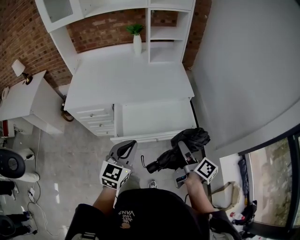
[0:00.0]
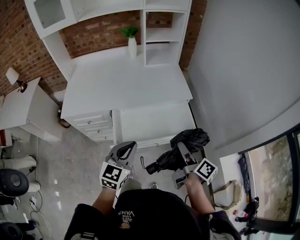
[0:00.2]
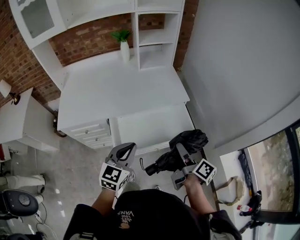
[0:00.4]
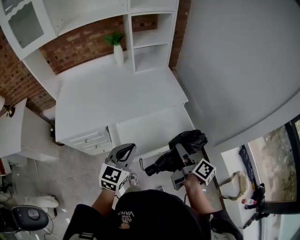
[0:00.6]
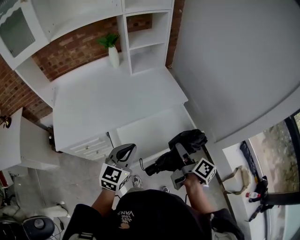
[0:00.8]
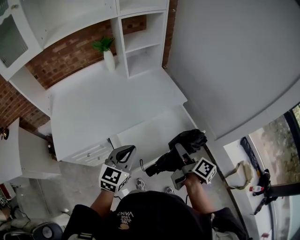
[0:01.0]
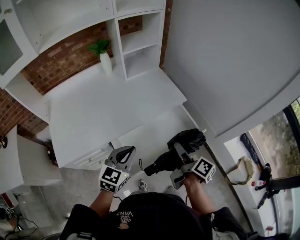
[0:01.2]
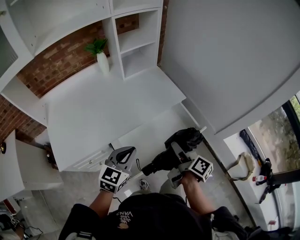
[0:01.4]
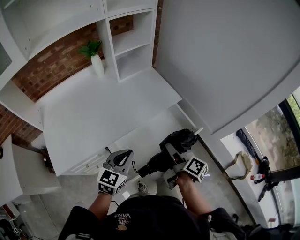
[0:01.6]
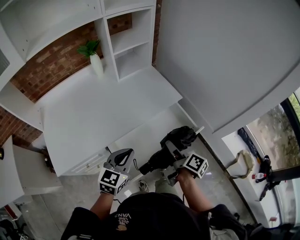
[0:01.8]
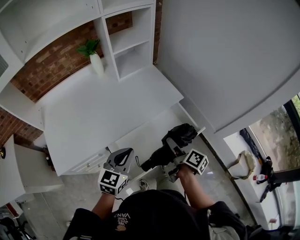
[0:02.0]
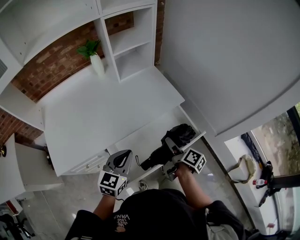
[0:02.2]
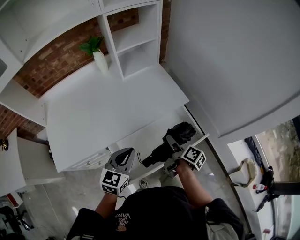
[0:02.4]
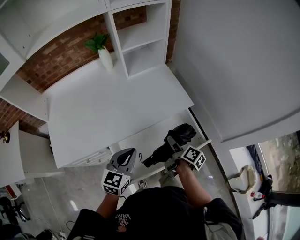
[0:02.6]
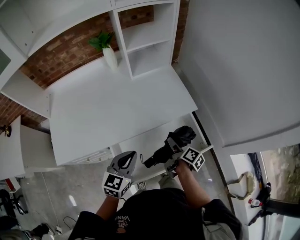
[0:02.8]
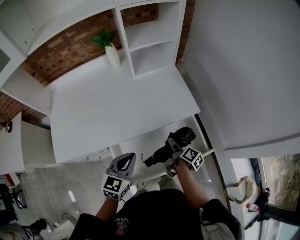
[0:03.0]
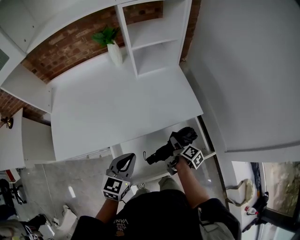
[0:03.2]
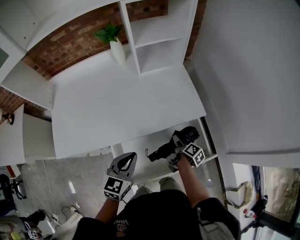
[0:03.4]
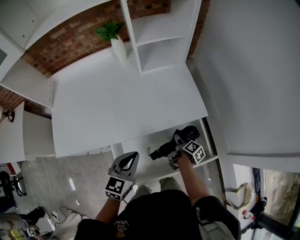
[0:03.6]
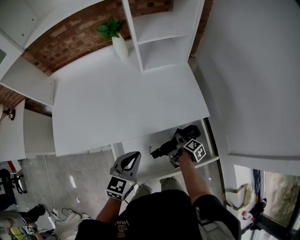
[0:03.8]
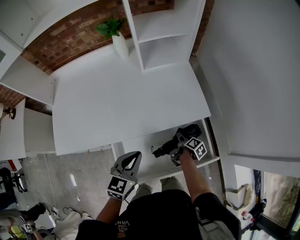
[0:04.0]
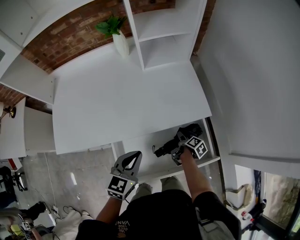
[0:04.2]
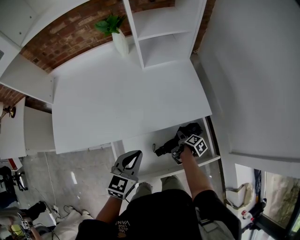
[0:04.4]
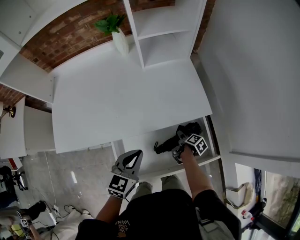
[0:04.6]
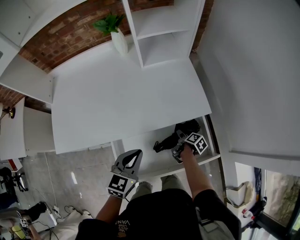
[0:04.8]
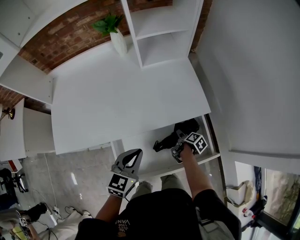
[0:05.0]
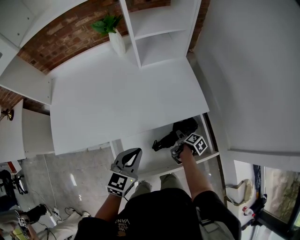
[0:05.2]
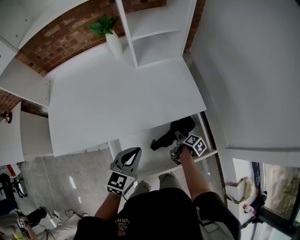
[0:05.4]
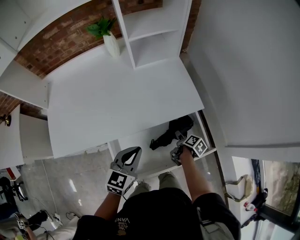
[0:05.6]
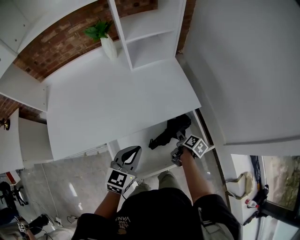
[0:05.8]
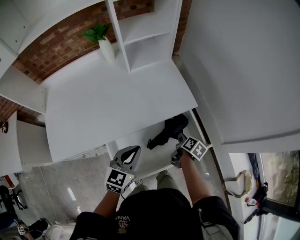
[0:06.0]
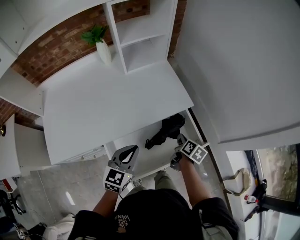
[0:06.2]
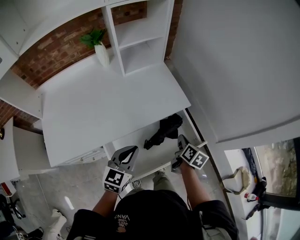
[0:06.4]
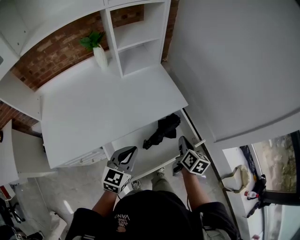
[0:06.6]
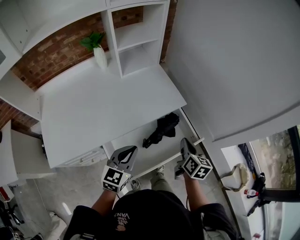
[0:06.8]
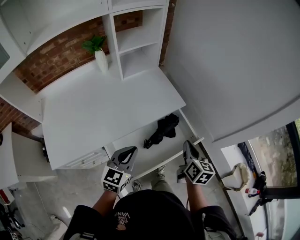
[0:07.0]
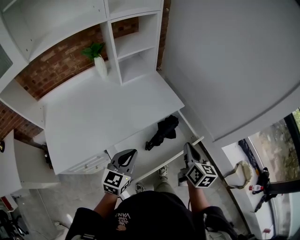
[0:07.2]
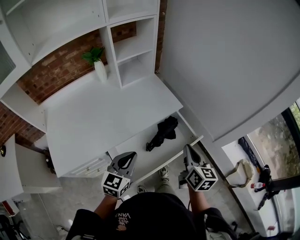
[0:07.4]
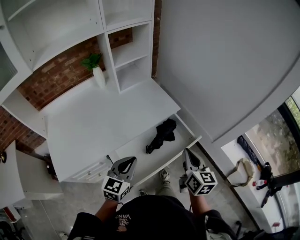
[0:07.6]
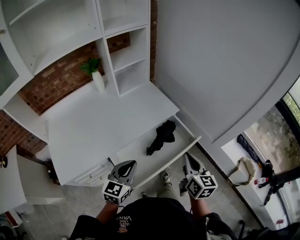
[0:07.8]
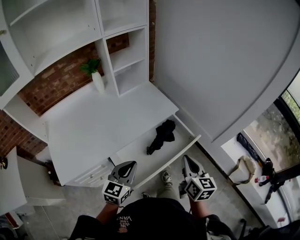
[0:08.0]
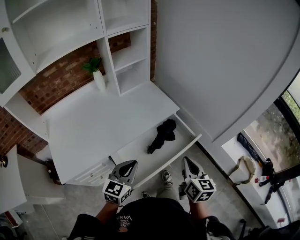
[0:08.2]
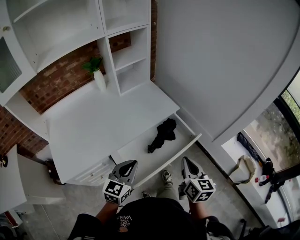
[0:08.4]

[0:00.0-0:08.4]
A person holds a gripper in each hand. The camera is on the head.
0:00.0 to 0:01.4: The right gripper changes place by some 20 cm, and rotates roughly 20 degrees; the left gripper moves roughly 20 cm, and swivels roughly 30 degrees.
0:01.4 to 0:02.8: The left gripper is displaced forward by roughly 10 cm. The right gripper moves forward and downward, some 20 cm.
0:02.8 to 0:04.2: The left gripper ends up roughly 5 cm from where it was, while the right gripper goes approximately 15 cm downward and forward, and turns by approximately 20 degrees.
0:04.2 to 0:05.6: The grippers make only small movements.
0:05.6 to 0:07.0: The right gripper moves upward and backward, roughly 30 cm, turns by roughly 50 degrees, and closes its fingers. Meanwhile the left gripper goes roughly 5 cm backward.
0:07.0 to 0:08.4: The right gripper is displaced backward and upward by some 15 cm; the left gripper shifts some 10 cm backward.

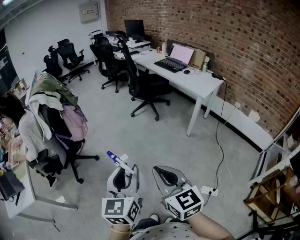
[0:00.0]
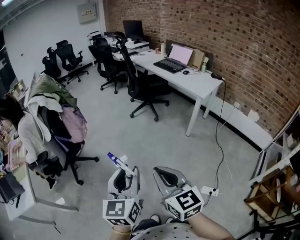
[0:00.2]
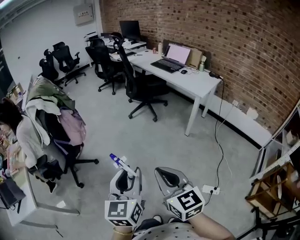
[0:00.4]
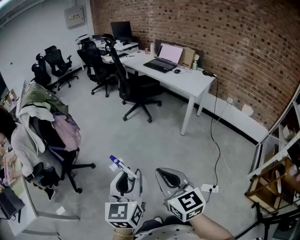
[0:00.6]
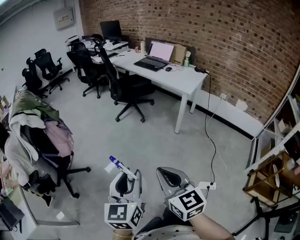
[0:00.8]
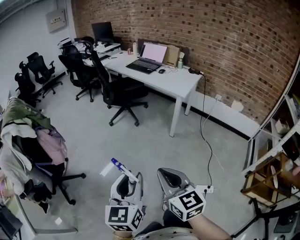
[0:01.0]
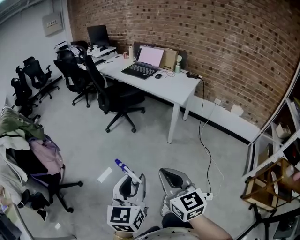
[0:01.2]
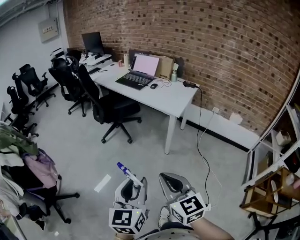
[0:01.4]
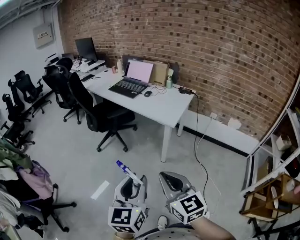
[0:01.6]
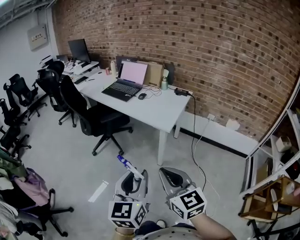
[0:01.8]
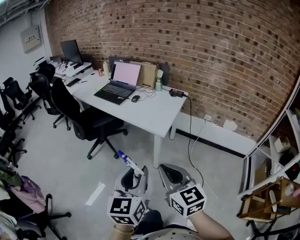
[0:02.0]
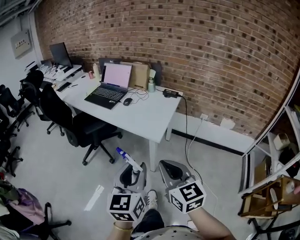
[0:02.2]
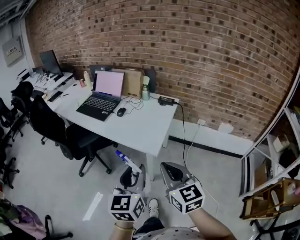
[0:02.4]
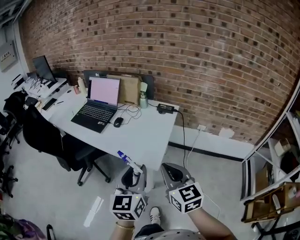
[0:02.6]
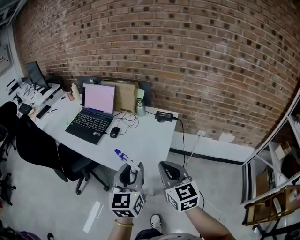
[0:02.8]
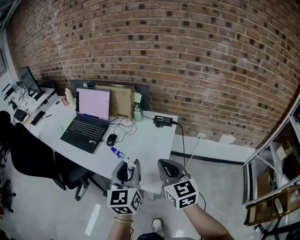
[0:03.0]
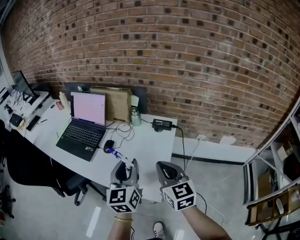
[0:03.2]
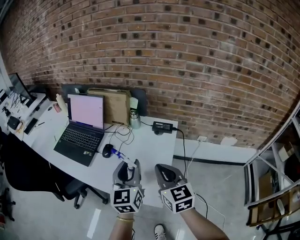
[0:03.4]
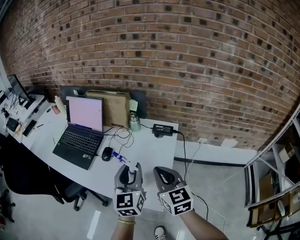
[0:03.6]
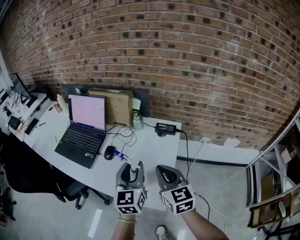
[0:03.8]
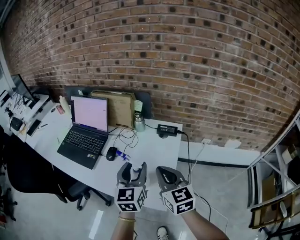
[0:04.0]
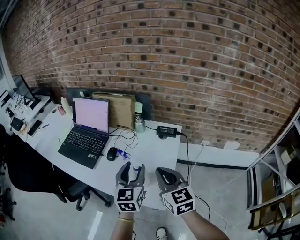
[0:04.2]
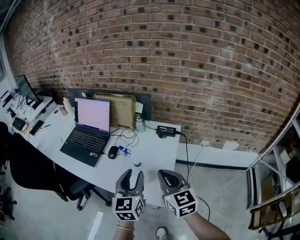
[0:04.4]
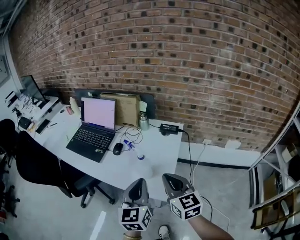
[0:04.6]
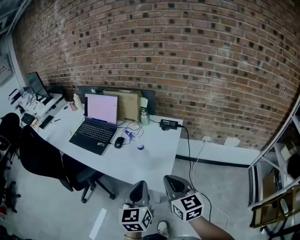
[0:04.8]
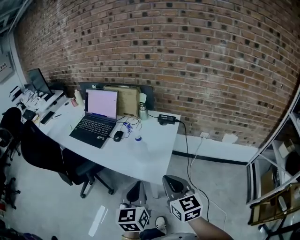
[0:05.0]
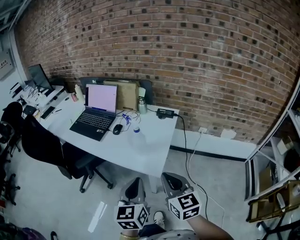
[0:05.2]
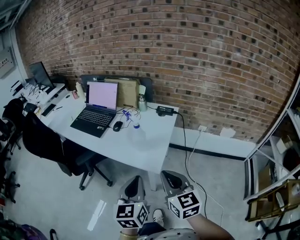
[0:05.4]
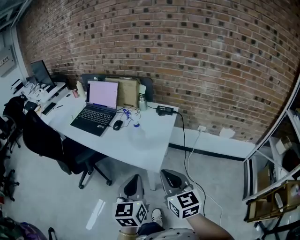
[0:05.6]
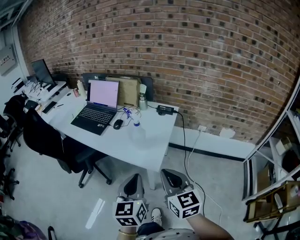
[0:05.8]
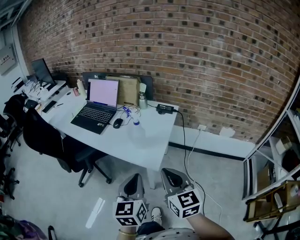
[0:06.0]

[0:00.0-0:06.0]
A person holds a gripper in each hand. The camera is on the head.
0:00.0 to 0:01.6: Both grippers travel together forward and to the right, approximately 40 cm. The left gripper changes its angle by approximately 20 degrees.
0:01.6 to 0:03.0: The pair of grippers is taken forward, roughly 60 cm. The right gripper rotates roughly 20 degrees.
0:03.0 to 0:04.4: The left gripper travels forward by roughly 5 cm.
0:04.4 to 0:06.0: The two grippers go roughly 25 cm backward. The left gripper closes its fingers.

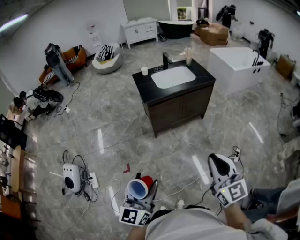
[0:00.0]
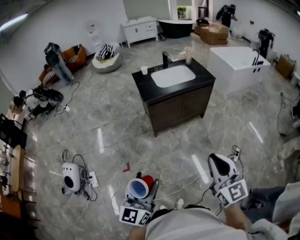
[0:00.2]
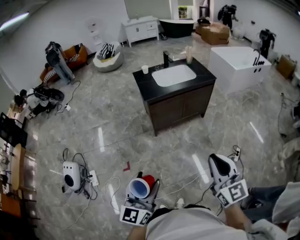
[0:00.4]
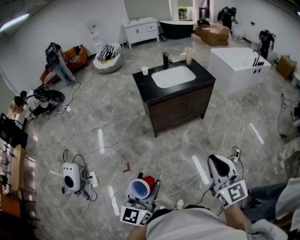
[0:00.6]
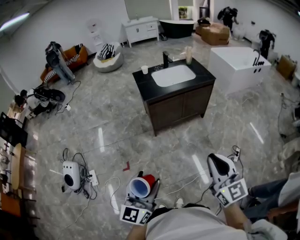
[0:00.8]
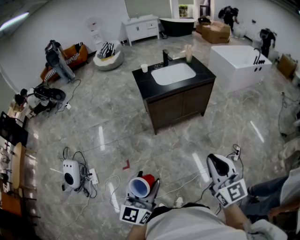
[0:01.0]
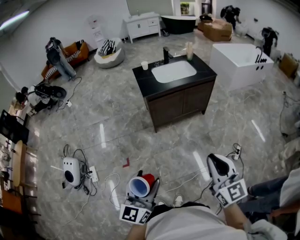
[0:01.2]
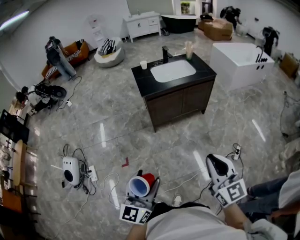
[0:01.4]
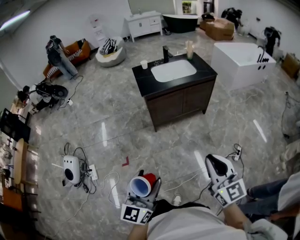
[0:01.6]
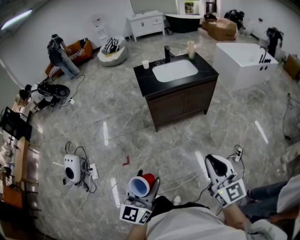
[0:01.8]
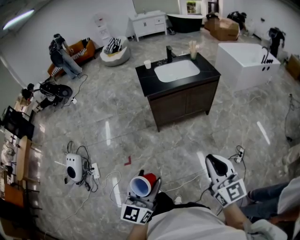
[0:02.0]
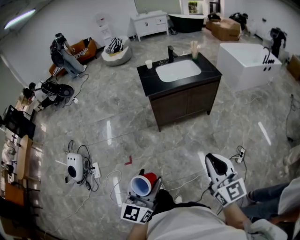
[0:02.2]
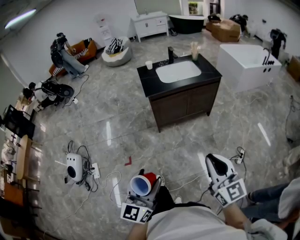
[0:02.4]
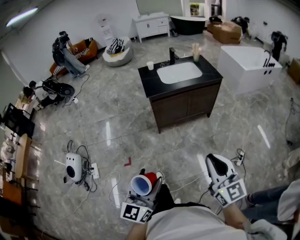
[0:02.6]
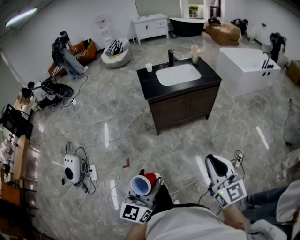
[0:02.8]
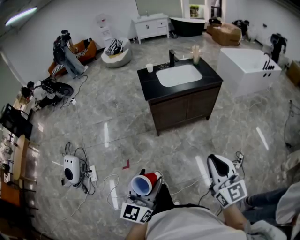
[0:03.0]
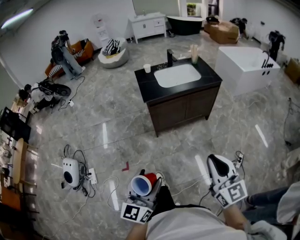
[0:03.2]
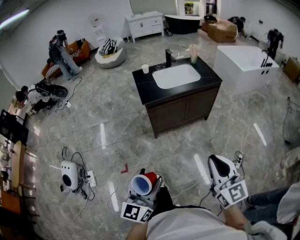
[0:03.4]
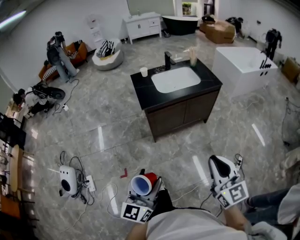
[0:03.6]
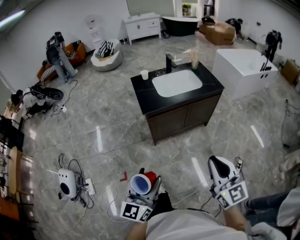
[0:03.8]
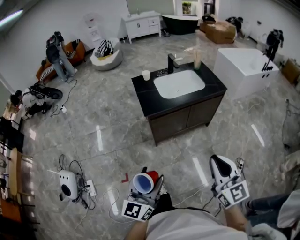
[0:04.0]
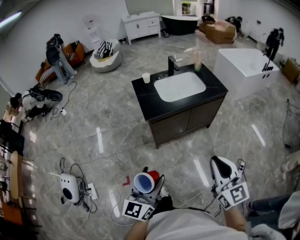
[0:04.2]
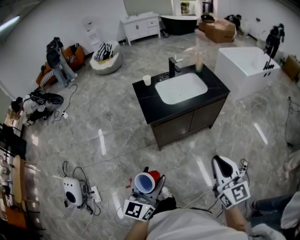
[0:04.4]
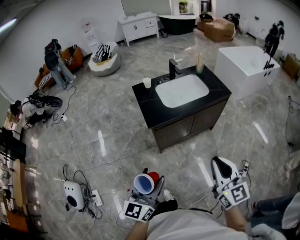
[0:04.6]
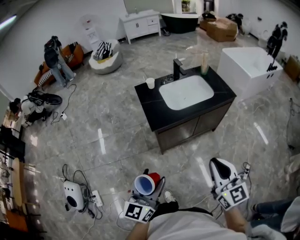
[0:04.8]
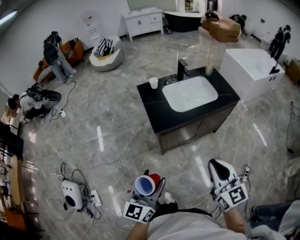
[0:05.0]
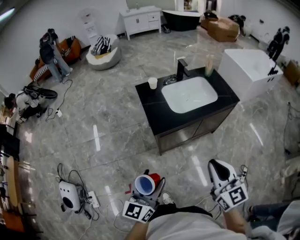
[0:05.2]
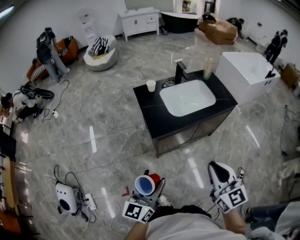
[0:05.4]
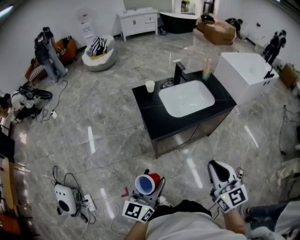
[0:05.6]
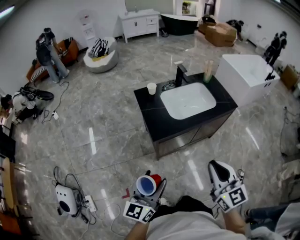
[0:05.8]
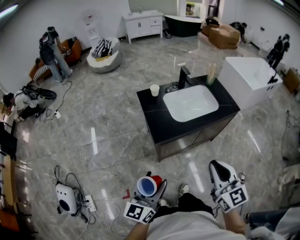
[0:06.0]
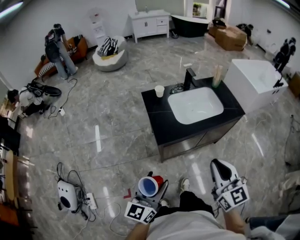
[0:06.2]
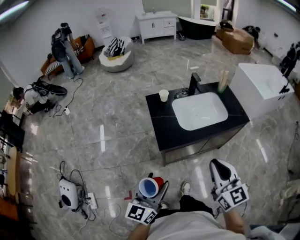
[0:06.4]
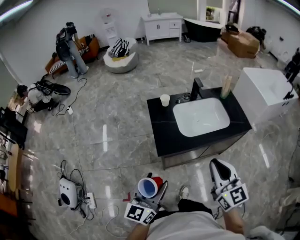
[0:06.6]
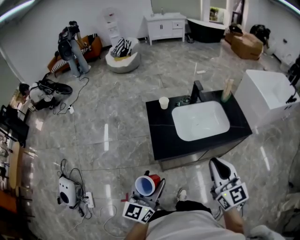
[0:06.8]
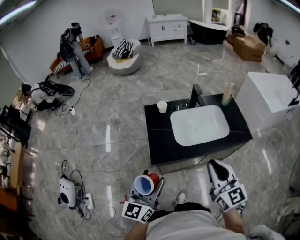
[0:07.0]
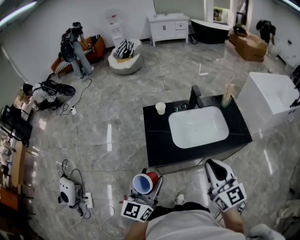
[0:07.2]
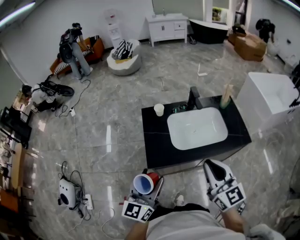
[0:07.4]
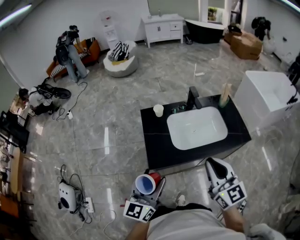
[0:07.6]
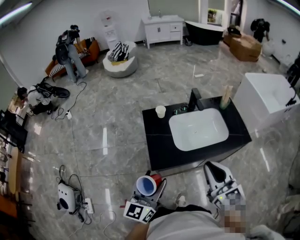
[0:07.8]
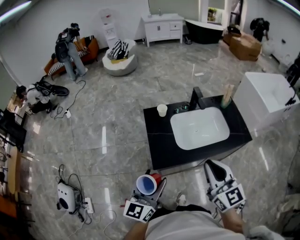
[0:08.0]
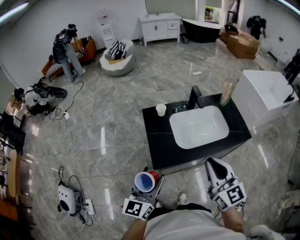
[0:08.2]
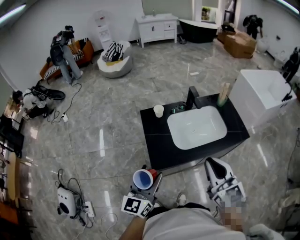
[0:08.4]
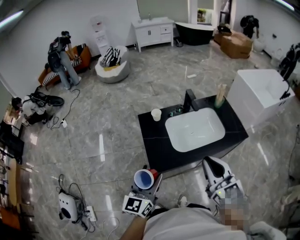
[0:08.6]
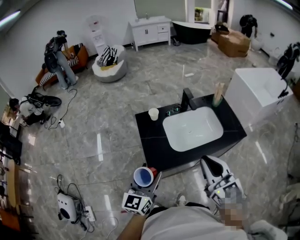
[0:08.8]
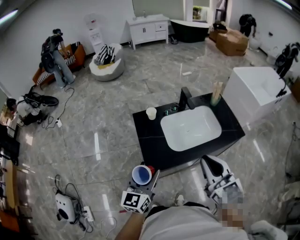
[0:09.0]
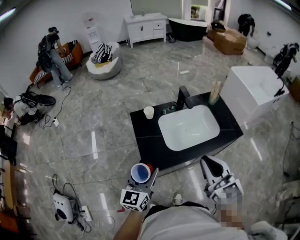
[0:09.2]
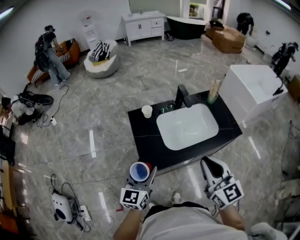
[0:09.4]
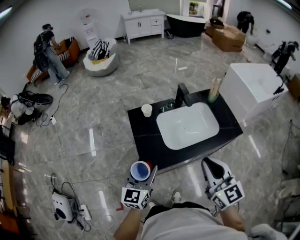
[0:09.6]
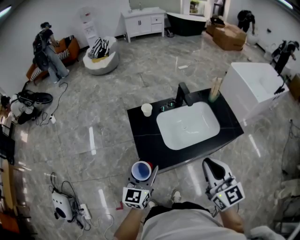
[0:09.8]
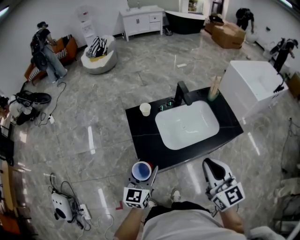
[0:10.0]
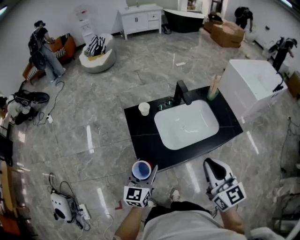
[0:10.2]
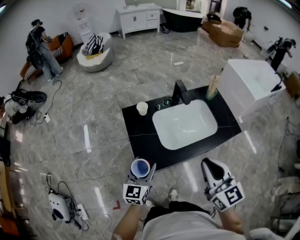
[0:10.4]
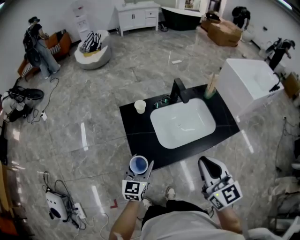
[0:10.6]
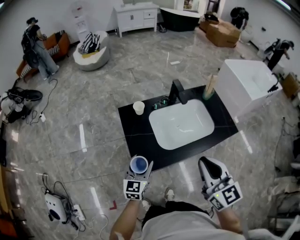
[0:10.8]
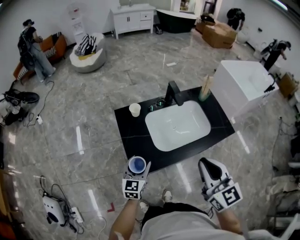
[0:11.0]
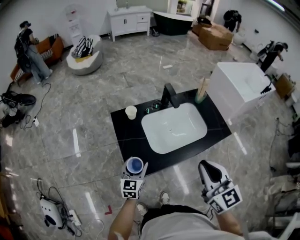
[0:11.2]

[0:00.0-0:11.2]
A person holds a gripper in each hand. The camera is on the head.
0:00.0 to 0:01.6: The left gripper travels to the right by about 5 cm.
0:01.6 to 0:03.2: The grippers both shift forward by some 5 cm.
0:03.2 to 0:04.8: Both grippers travel together forward, approximately 25 cm.
0:04.8 to 0:06.4: The grippers both shift forward by some 15 cm.
0:06.4 to 0:08.0: Both grippers travel together forward, roughly 15 cm.
0:08.0 to 0:09.6: The left gripper is displaced forward and downward by about 10 cm.
0:09.6 to 0:11.2: The left gripper moves downward and forward, about 15 cm.
